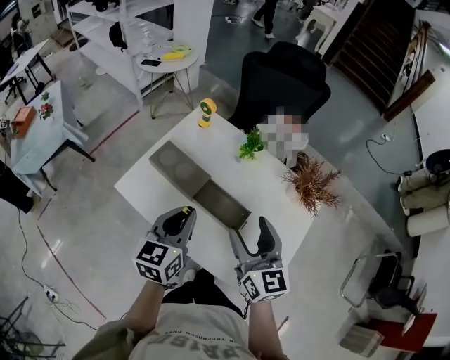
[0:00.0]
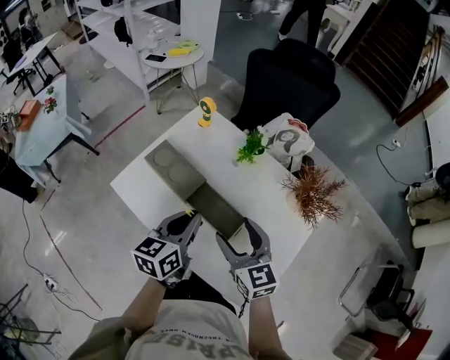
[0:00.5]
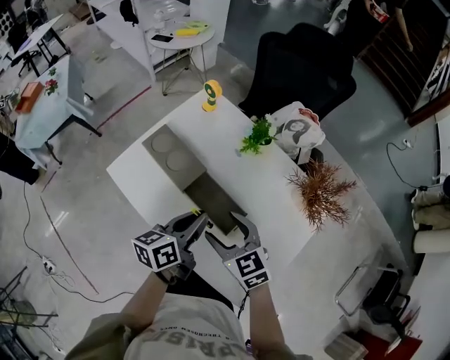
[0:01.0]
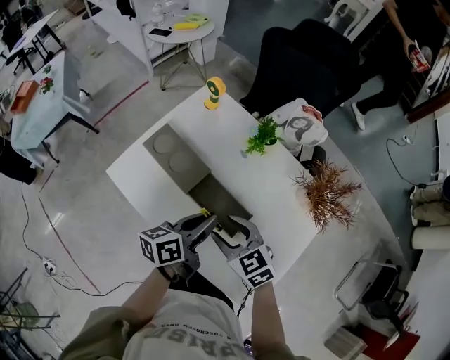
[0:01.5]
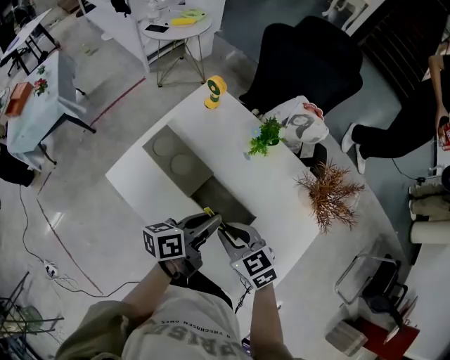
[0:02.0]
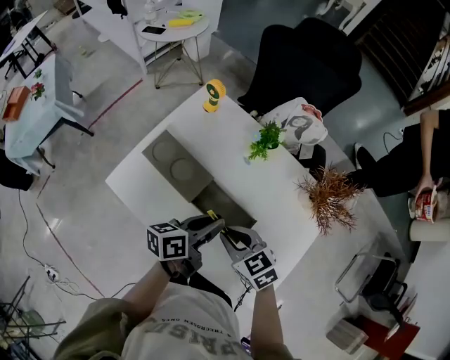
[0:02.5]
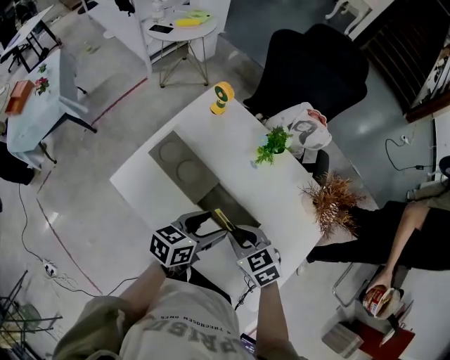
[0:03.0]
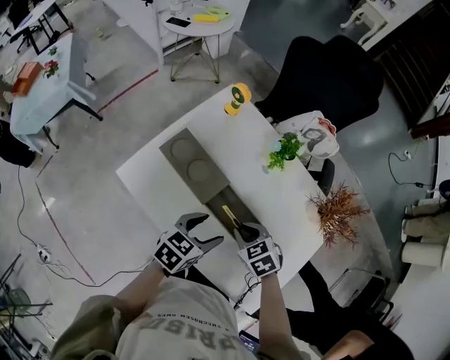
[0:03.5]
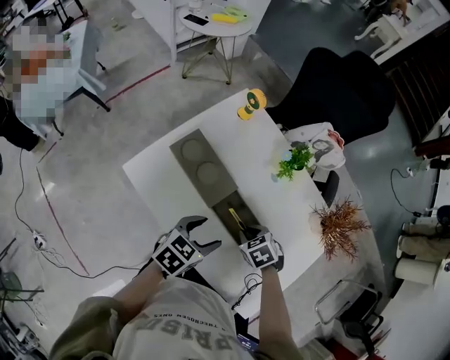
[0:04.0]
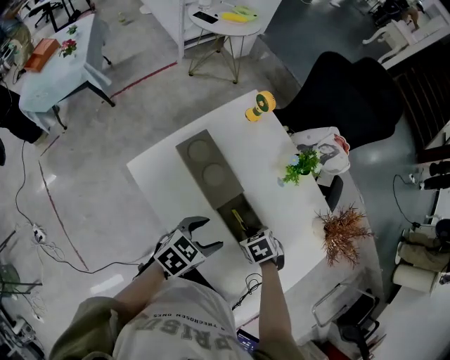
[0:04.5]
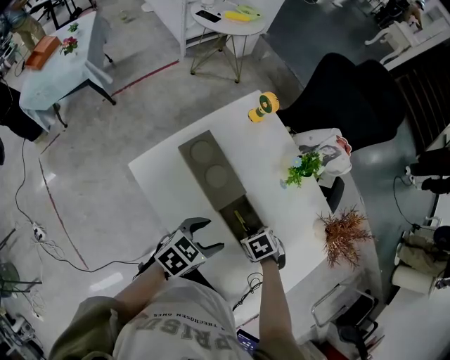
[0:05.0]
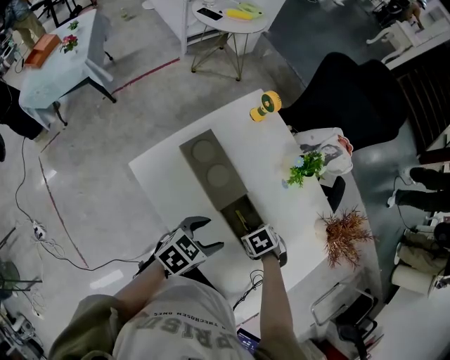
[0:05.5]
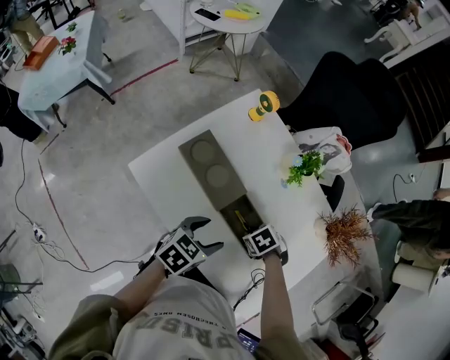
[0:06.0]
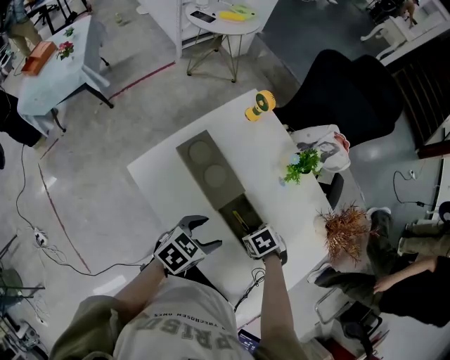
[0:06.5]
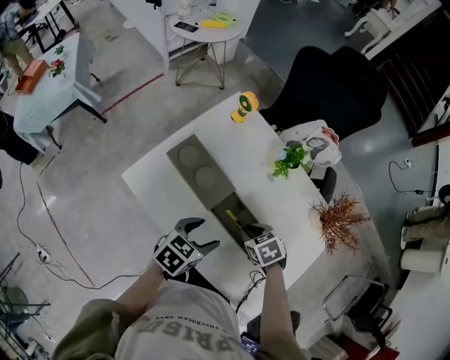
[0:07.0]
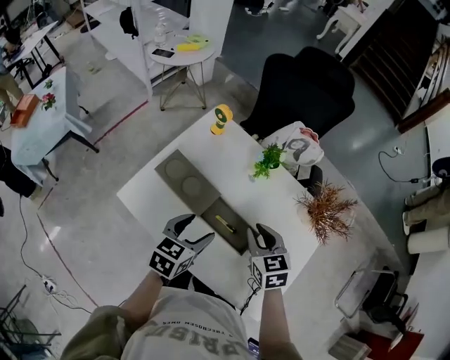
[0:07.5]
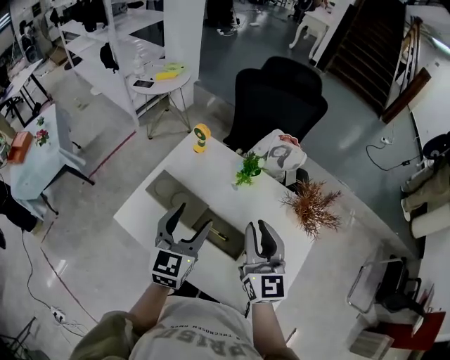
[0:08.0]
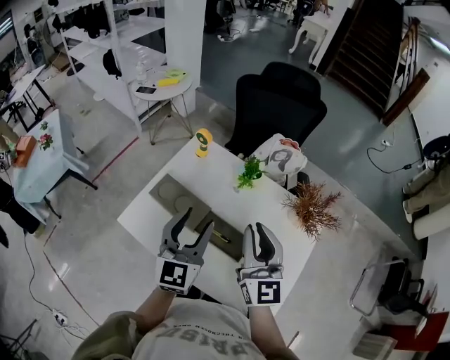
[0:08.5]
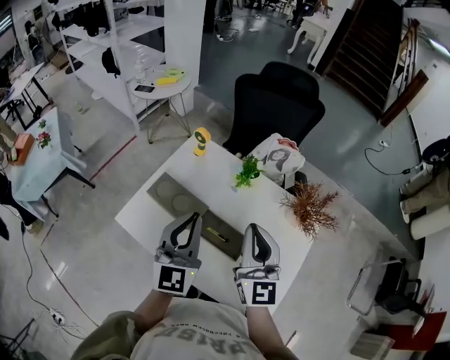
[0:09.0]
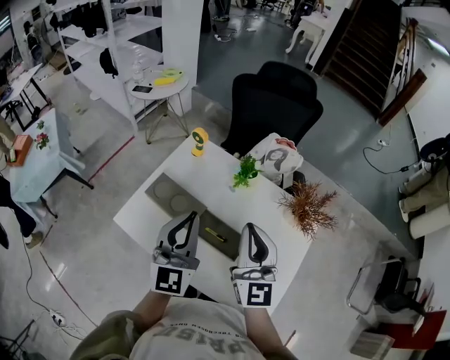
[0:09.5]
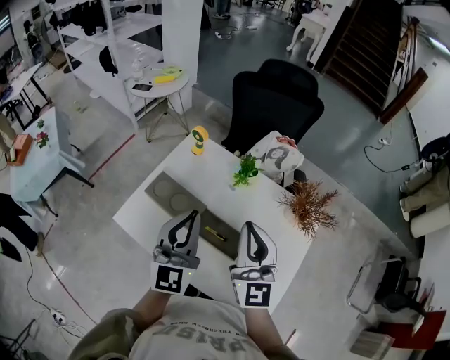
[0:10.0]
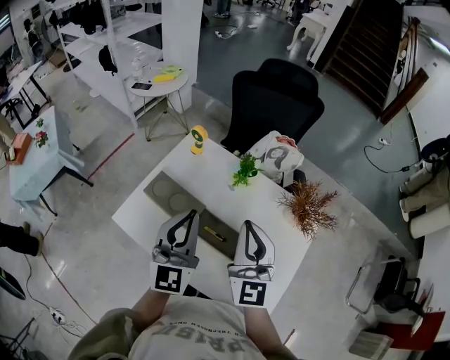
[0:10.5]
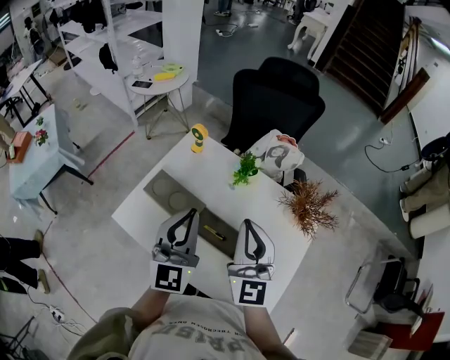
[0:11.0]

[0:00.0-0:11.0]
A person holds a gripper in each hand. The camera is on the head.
0:00.0 to 0:02.0: The left gripper heads downward and to the right, covering roughly 15 cm, and rolls counterclockwise, seen from behind, by some 40 degrees. Meanwhile the right gripper shifts about 15 cm downward, swivels approximately 40 degrees, and closes.
0:02.0 to 0:03.5: The right gripper moves downward, about 10 cm, and changes its angle by roughly 20 degrees; the left gripper shifts by approximately 5 cm, changes its angle by some 40 degrees, and opens up.
0:03.5 to 0:05.5: The right gripper heads downward, covering some 10 cm, and swivels roughly 30 degrees.
0:05.5 to 0:07.5: The left gripper travels upward by roughly 5 cm. The right gripper goes some 20 cm upward, and angles its fingers upward, by about 50 degrees.
0:07.5 to 0:09.0: Both grippers move upward, roughly 20 cm. The left gripper tilts its fingers some 40 degrees upward, and closes up. Meanwhile the right gripper angles its fingers upward, by roughly 40 degrees.
0:09.0 to 0:11.0: There are only small adjustments of the grippers.

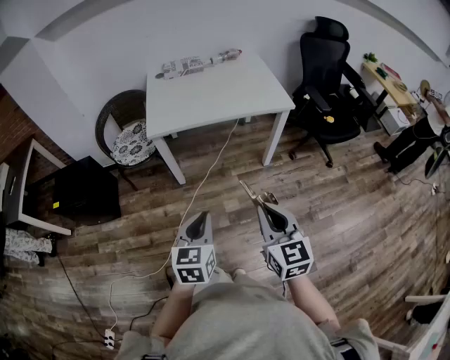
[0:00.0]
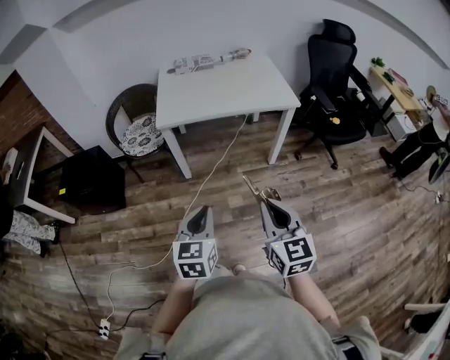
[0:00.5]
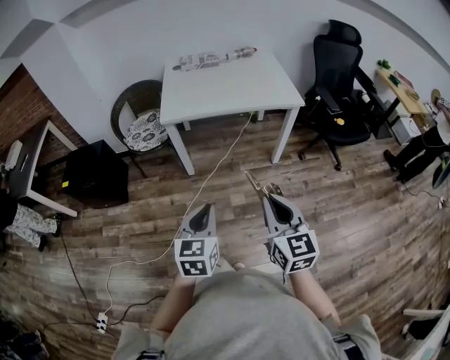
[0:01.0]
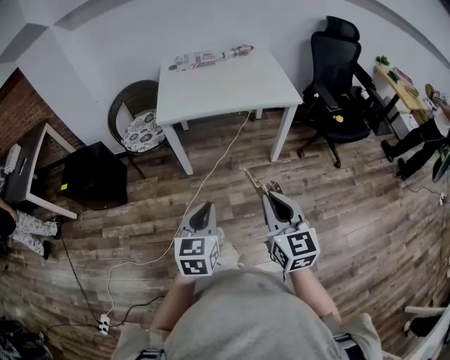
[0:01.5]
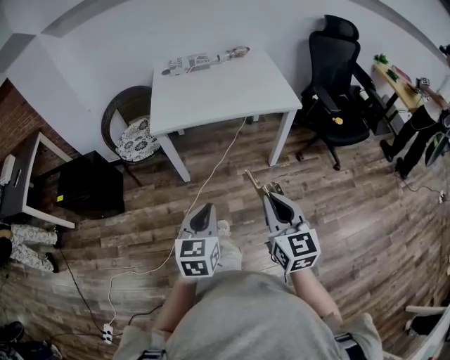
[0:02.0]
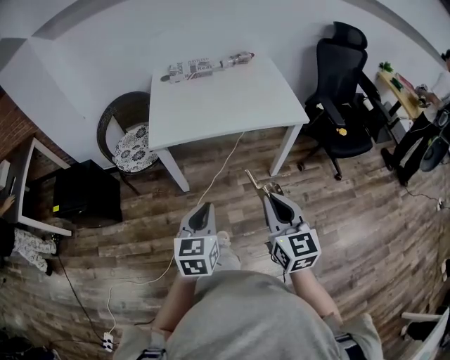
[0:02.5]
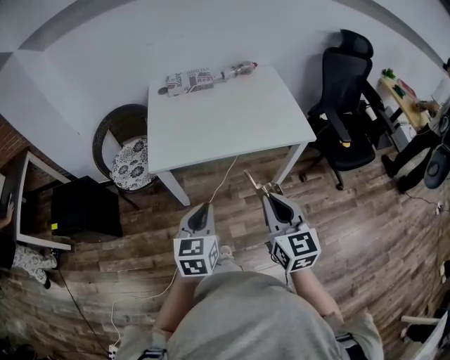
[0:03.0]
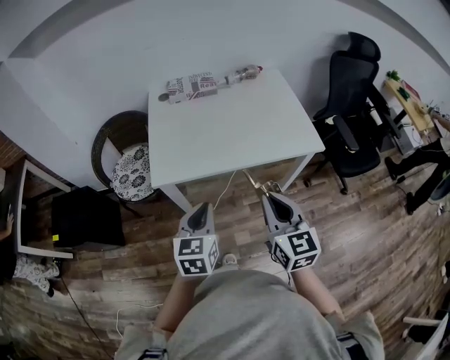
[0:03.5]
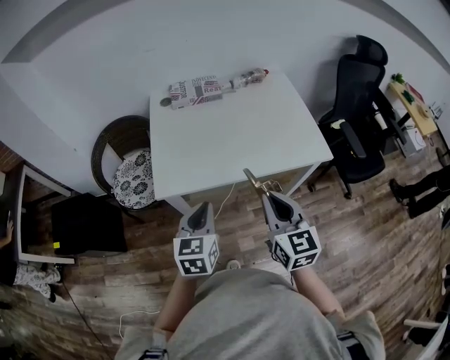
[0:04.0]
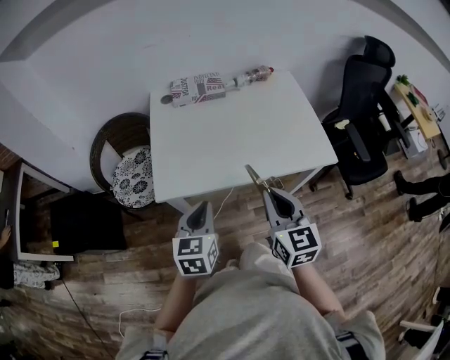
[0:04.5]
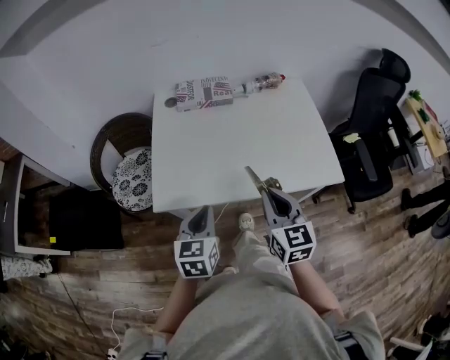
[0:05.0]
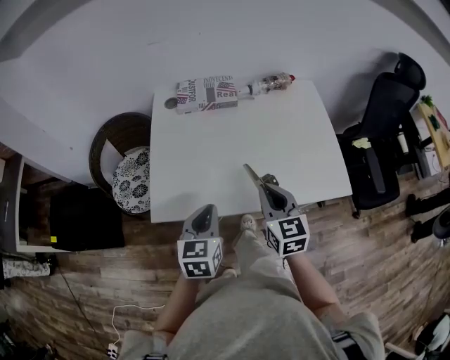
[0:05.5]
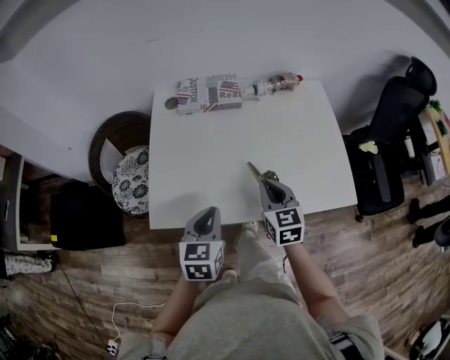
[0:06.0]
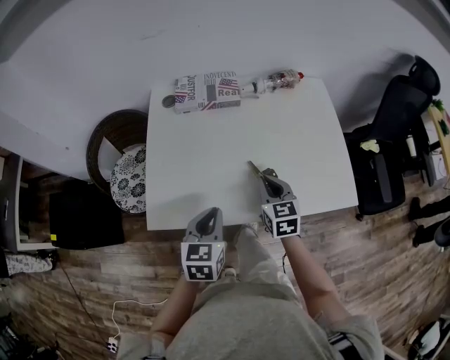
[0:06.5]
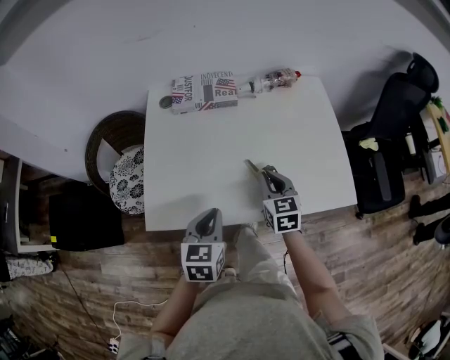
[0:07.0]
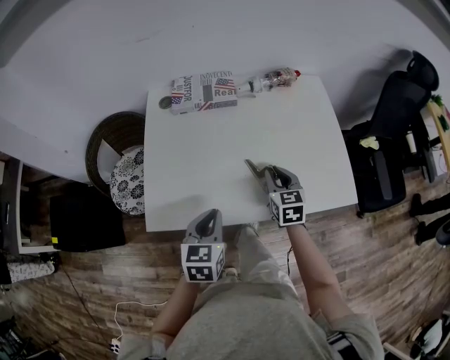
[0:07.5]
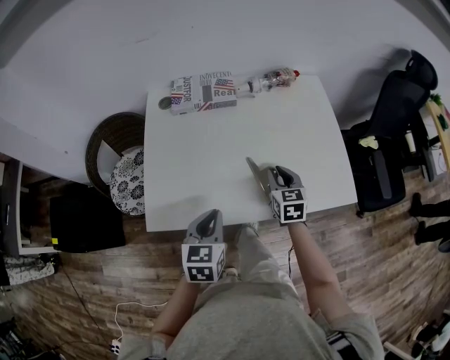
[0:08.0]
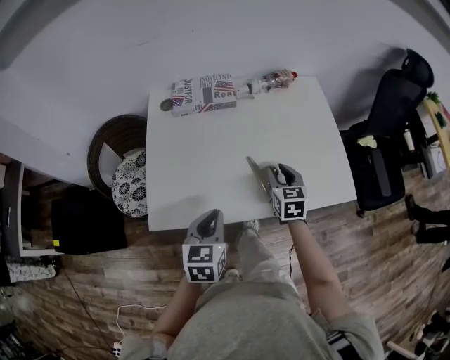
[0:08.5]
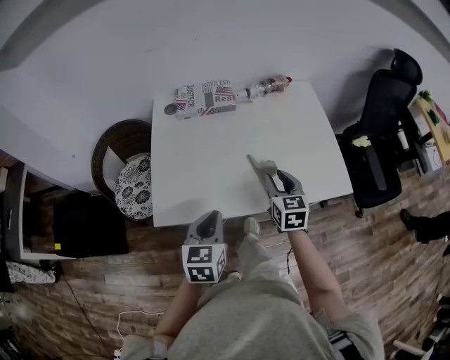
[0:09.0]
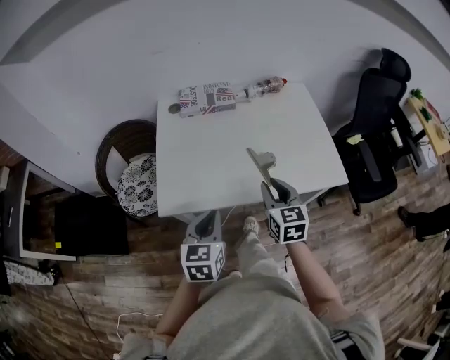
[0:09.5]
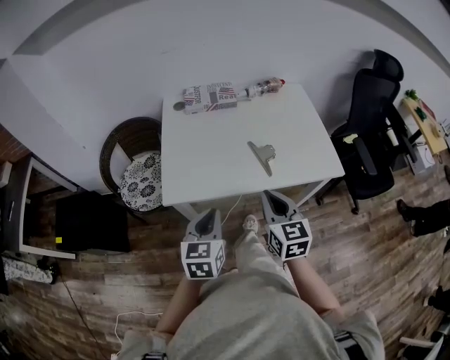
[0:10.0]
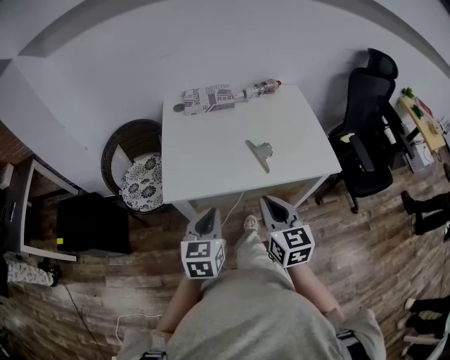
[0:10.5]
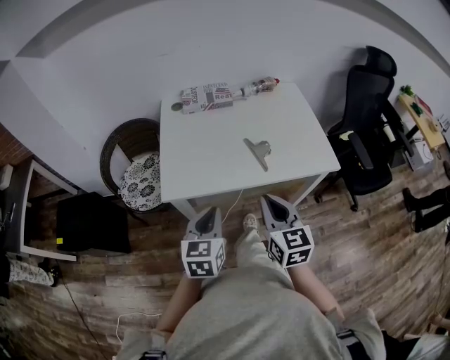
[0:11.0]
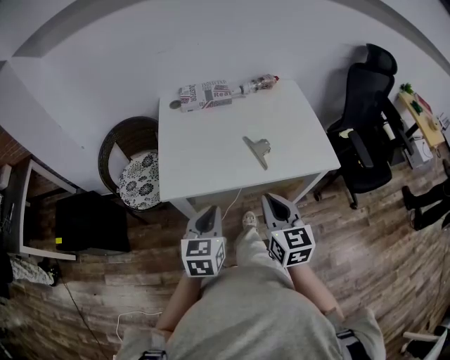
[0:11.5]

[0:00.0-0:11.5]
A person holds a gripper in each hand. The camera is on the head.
0:00.0 to 0:02.0: The left gripper goes backward and returns, roughly 5 cm each way.
0:02.0 to 0:04.0: The two grippers go approximately 35 cm forward.
0:04.0 to 0:06.0: The right gripper travels forward and downward by about 30 cm, while the left gripper heads forward, covering some 15 cm.
0:06.0 to 0:07.5: The right gripper heads downward and to the right, covering about 5 cm.
0:07.5 to 0:09.5: The left gripper heads backward and upward, covering roughly 10 cm, while the right gripper travels backward and upward by roughly 20 cm.
0:09.5 to 0:11.5: The left gripper is displaced backward by approximately 5 cm, while the right gripper shifts roughly 15 cm backward, and closes.

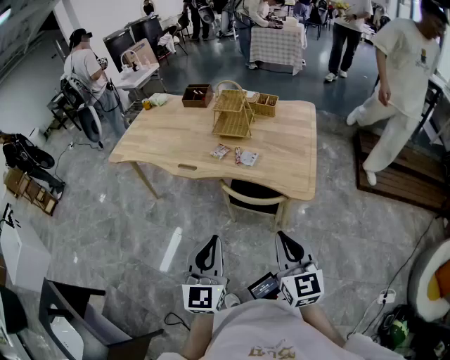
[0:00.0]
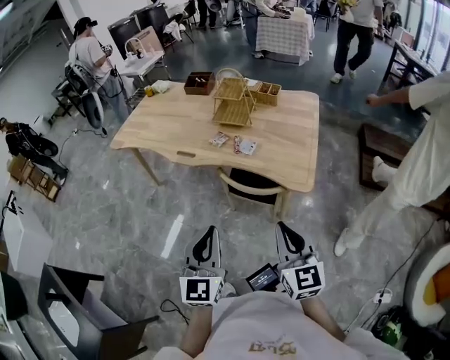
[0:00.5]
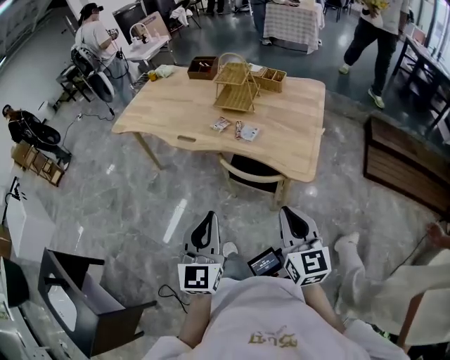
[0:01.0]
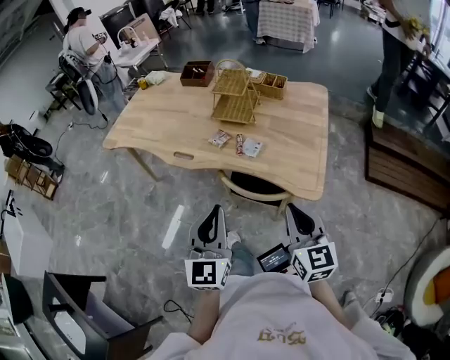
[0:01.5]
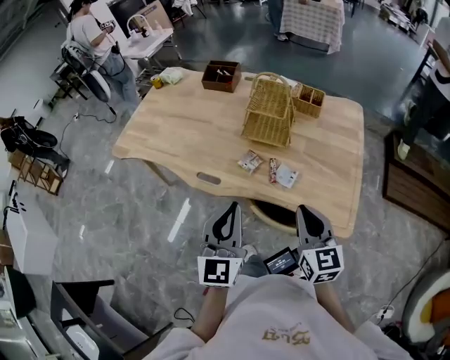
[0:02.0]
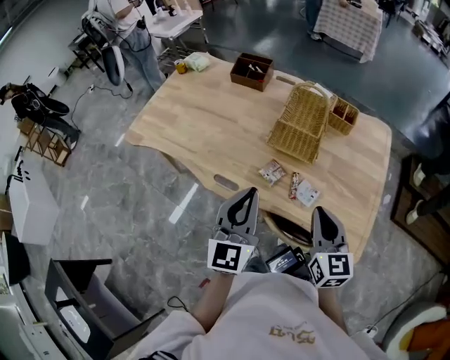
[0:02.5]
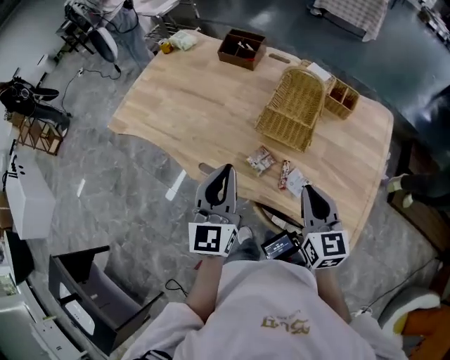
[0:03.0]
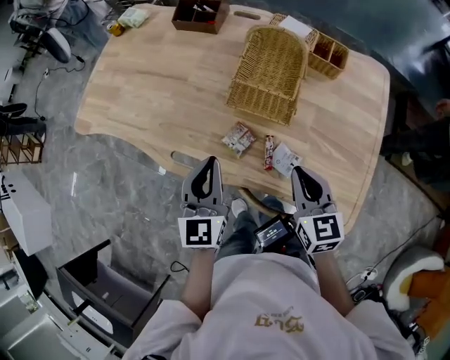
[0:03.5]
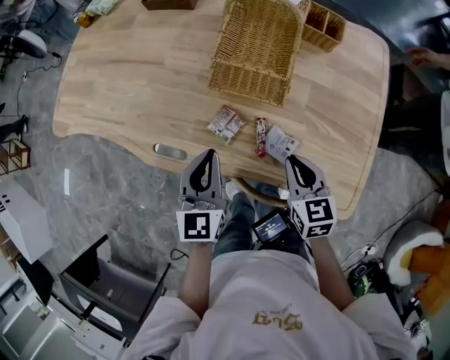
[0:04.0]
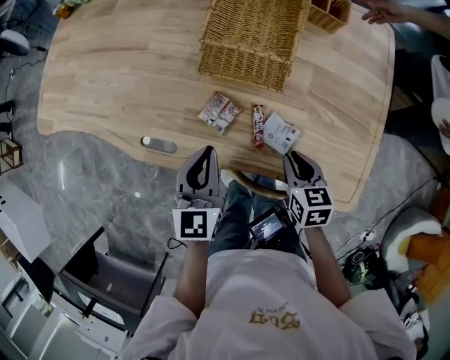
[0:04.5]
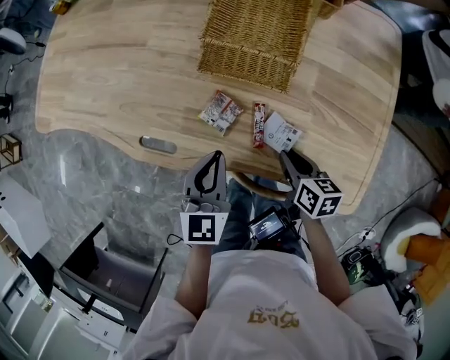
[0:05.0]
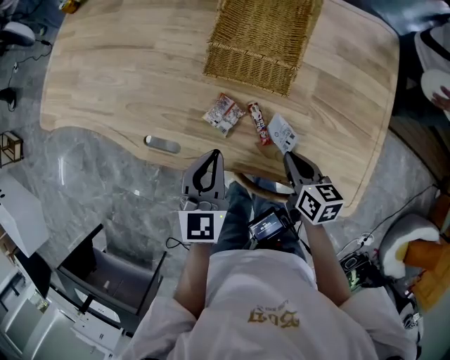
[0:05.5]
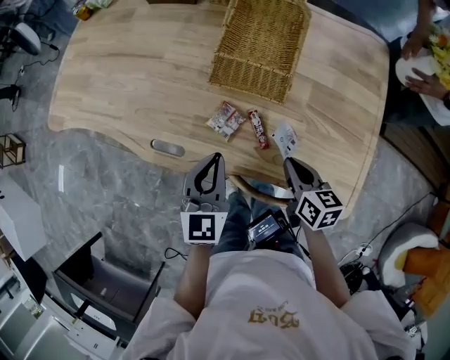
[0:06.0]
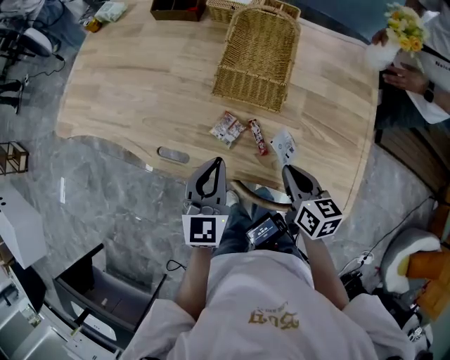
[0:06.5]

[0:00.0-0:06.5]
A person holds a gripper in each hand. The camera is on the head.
0:00.0 to 0:02.0: Both grippers travel together forward, some 30 cm.
0:02.0 to 0:04.5: The two grippers go roughly 30 cm downward and forward. The right gripper tips its fingers downward by approximately 40 degrees; the left gripper rotates approximately 20 degrees.
0:04.5 to 0:06.5: The left gripper heads upward, covering approximately 5 cm; the right gripper heads upward, covering roughly 10 cm.
